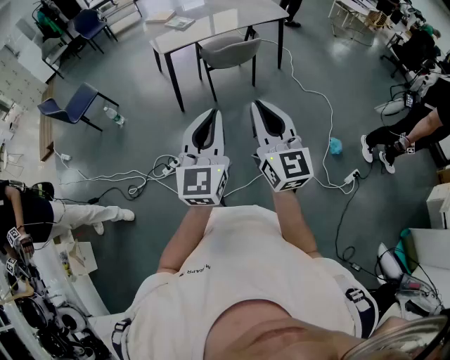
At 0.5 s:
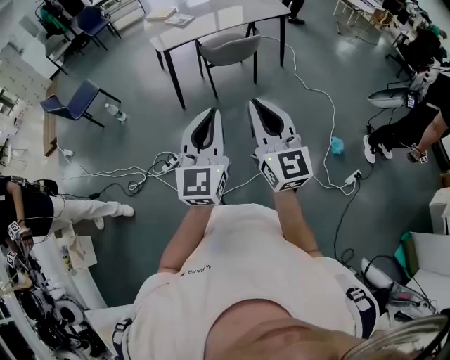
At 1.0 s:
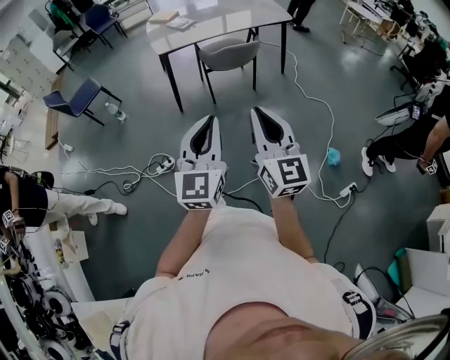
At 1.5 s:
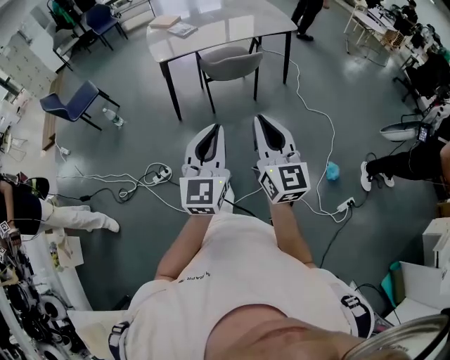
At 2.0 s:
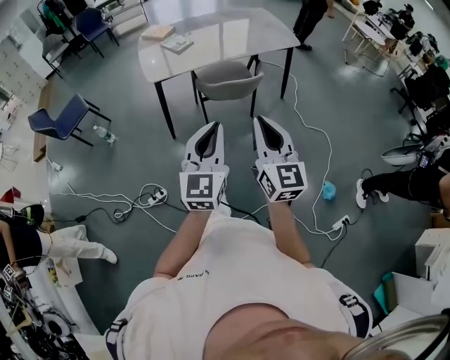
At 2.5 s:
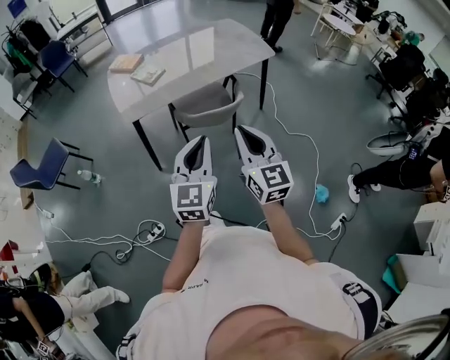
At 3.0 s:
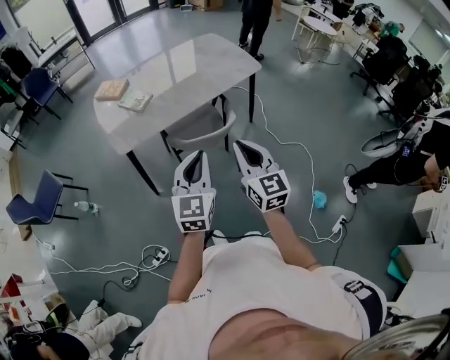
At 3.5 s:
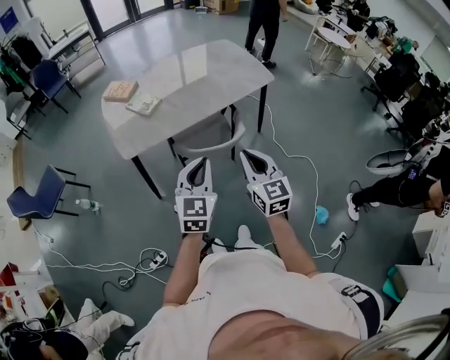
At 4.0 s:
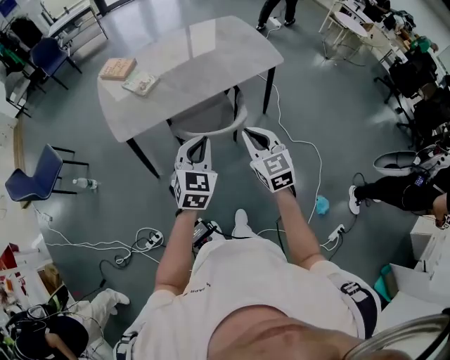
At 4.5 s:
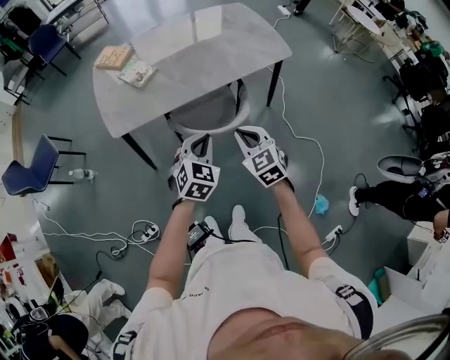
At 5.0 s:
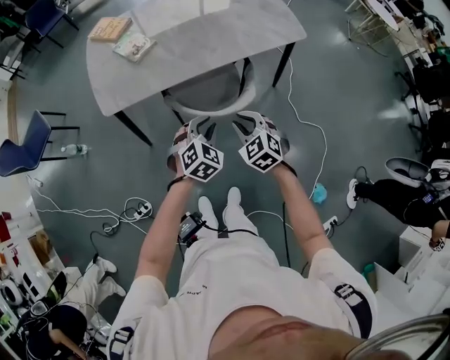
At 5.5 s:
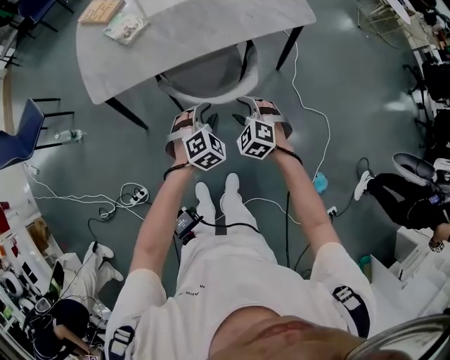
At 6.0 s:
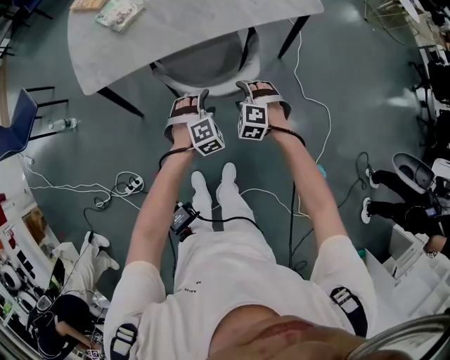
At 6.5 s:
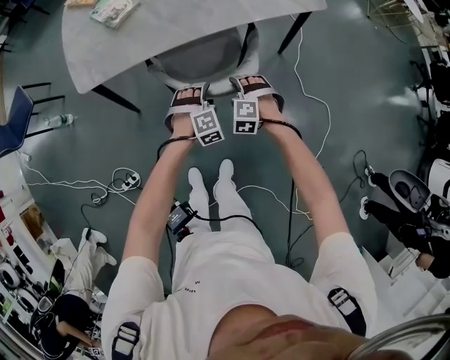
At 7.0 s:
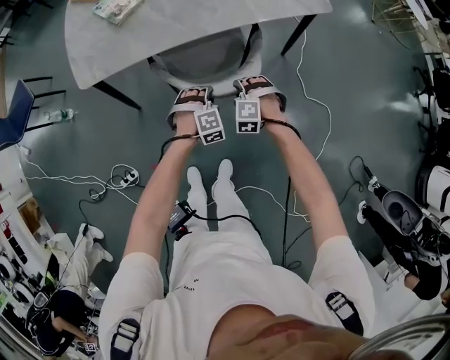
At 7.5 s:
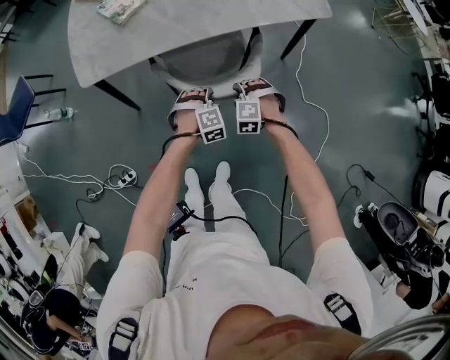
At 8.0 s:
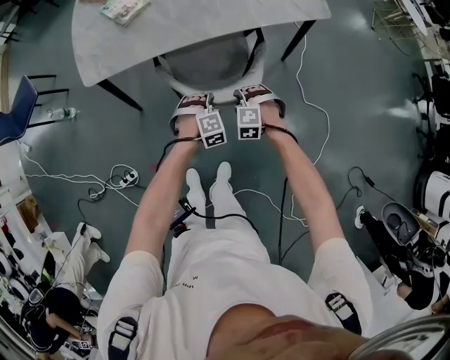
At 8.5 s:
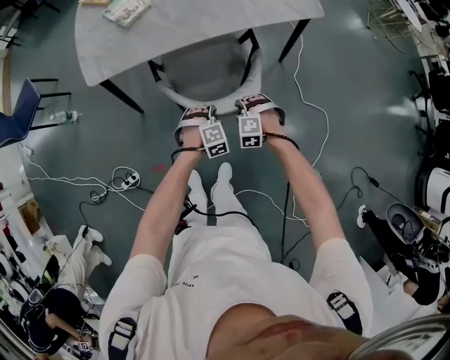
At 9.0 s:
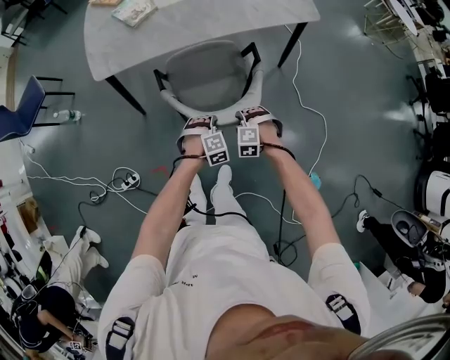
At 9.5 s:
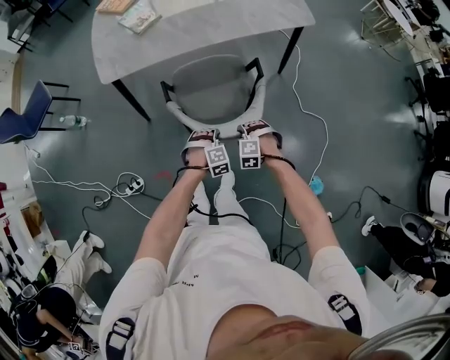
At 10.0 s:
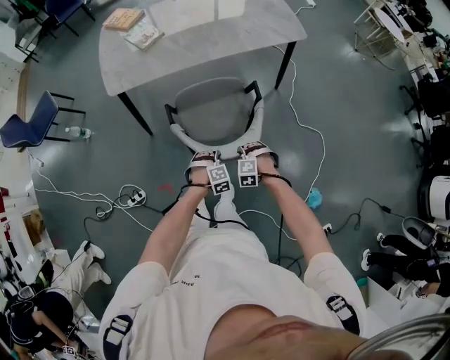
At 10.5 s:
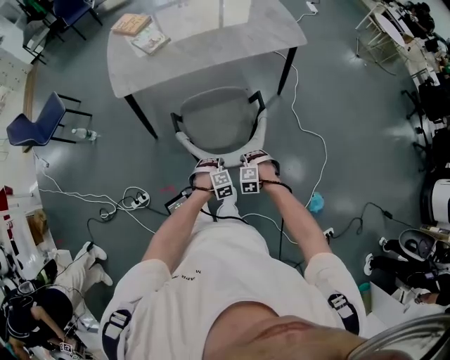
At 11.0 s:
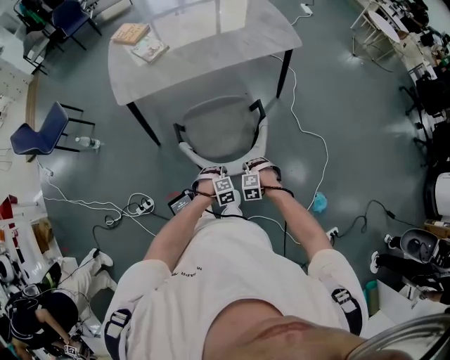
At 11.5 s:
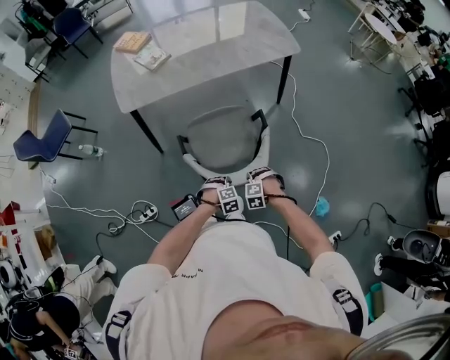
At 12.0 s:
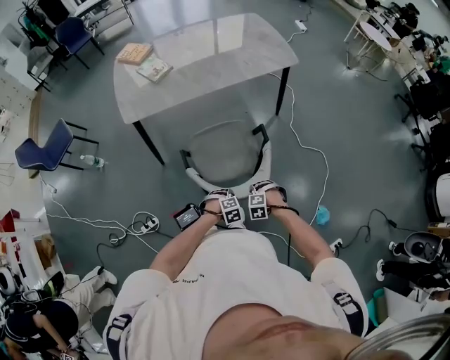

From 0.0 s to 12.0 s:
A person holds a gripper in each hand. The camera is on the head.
From 0.0 s to 2.0 s: Both grippers travel together forward, about 30 cm.
From 2.0 s to 4.0 s: The grippers both shift forward by about 35 cm. The left gripper rotates roughly 30 degrees. Meanwhile the right gripper swivels some 30 degrees.
From 4.0 s to 6.0 s: Both grippers travel together downward, about 35 cm. The left gripper angles its fingers downward, by roughly 30 degrees, and opens. The right gripper tilts its fingers about 40 degrees downward, and opens.
From 6.0 s to 8.0 s: The right gripper closes up, while the left gripper goes about 5 cm downward, and closes.
From 8.0 s to 10.0 s: Both grippers move backward, some 25 cm.
From 10.0 s to 12.0 s: The left gripper moves approximately 10 cm. Meanwhile the right gripper ends up approximately 10 cm from where it was.

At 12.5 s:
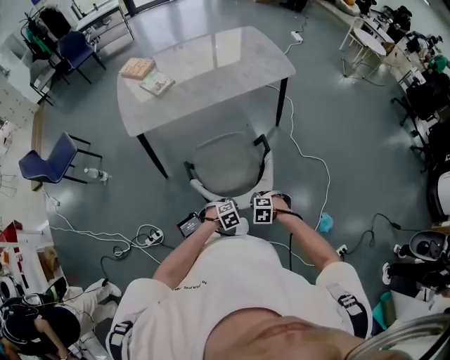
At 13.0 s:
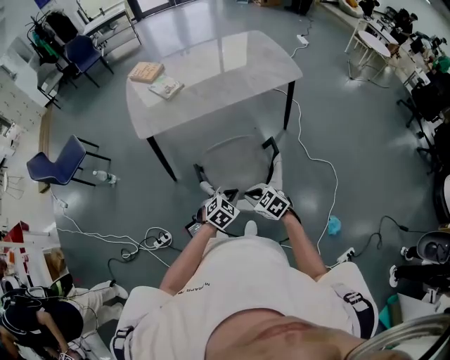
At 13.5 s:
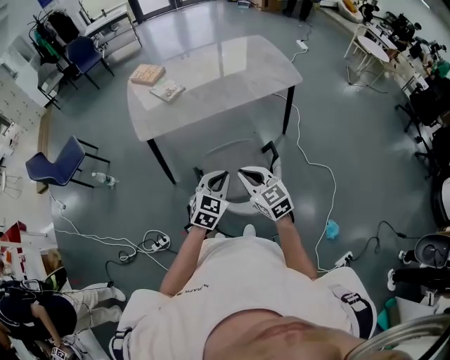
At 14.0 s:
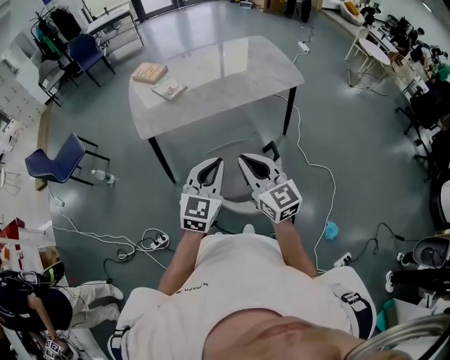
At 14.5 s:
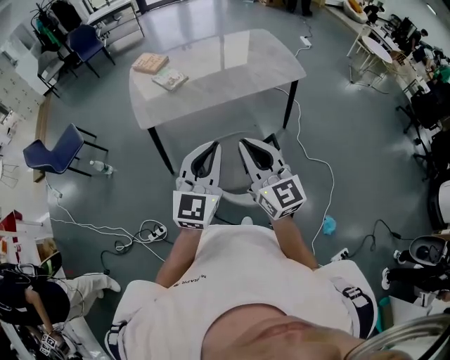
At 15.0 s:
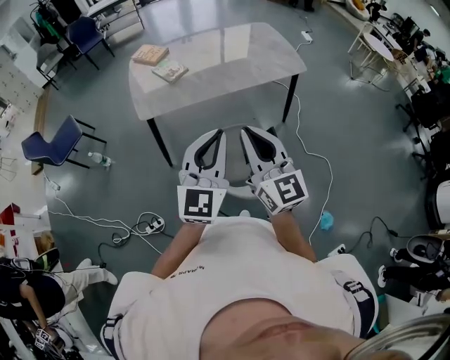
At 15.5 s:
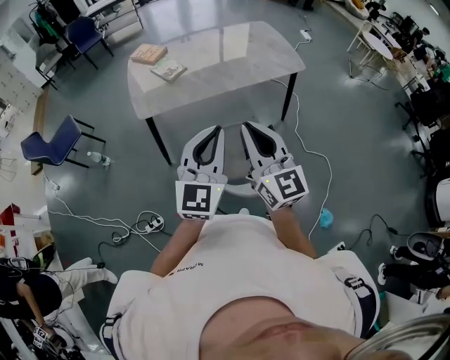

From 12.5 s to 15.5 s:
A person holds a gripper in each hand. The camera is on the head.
From 12.5 s to 14.0 s: Both grippers move upward, approximately 40 cm. The right gripper angles its fingers upward, by some 70 degrees. The left gripper tilts its fingers approximately 60 degrees upward.
From 14.0 s to 15.5 s: The grippers both shift upward by roughly 10 cm.

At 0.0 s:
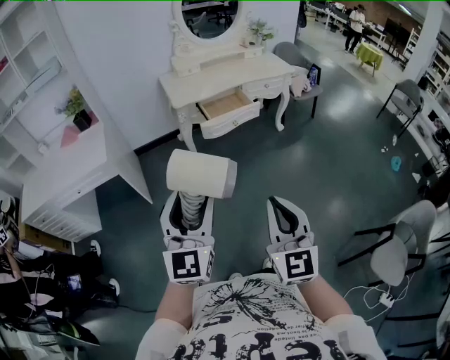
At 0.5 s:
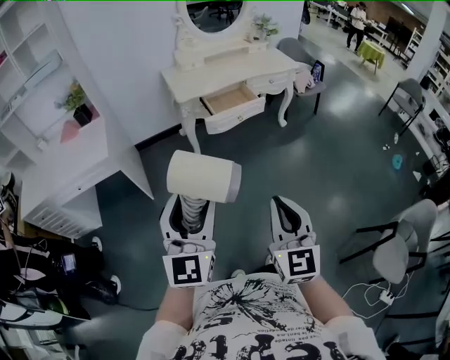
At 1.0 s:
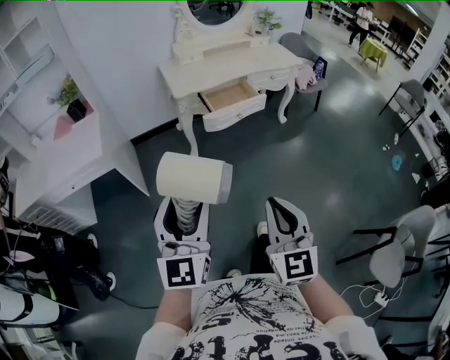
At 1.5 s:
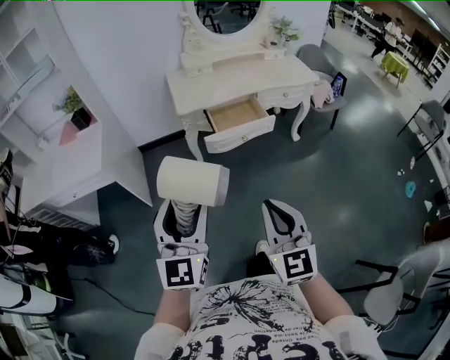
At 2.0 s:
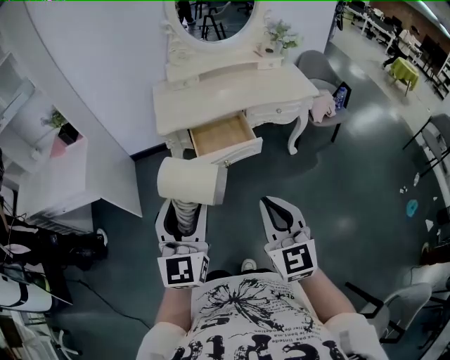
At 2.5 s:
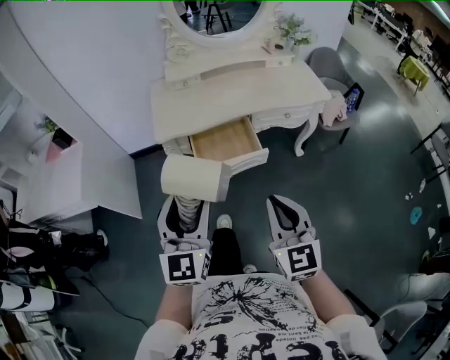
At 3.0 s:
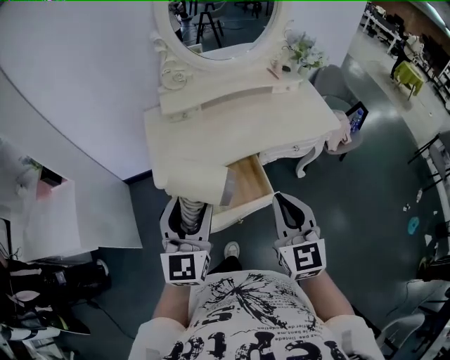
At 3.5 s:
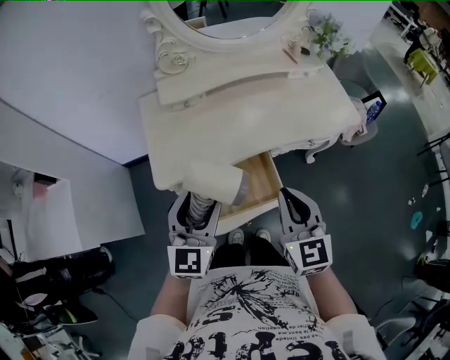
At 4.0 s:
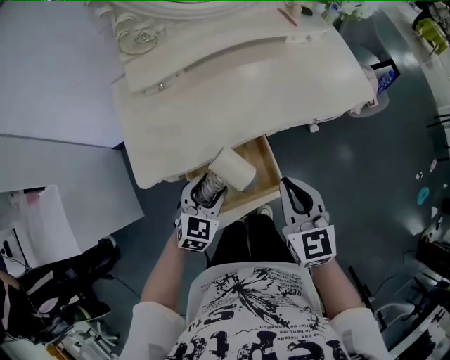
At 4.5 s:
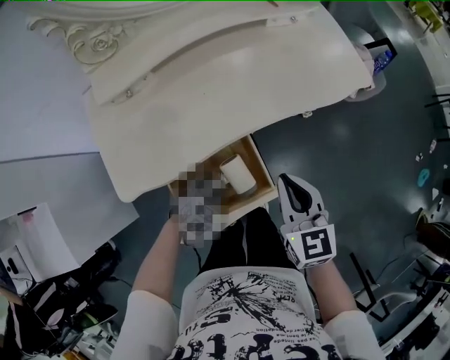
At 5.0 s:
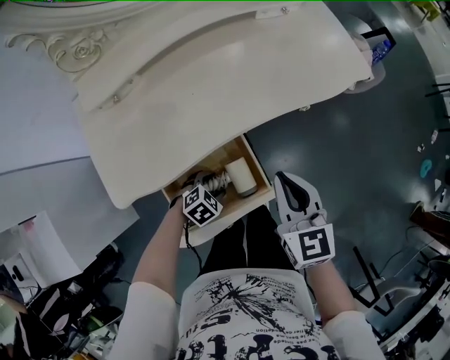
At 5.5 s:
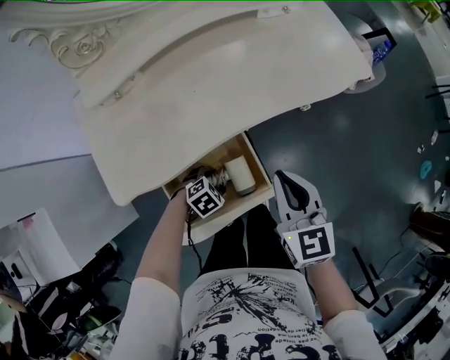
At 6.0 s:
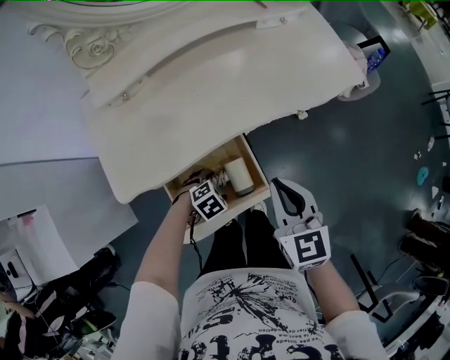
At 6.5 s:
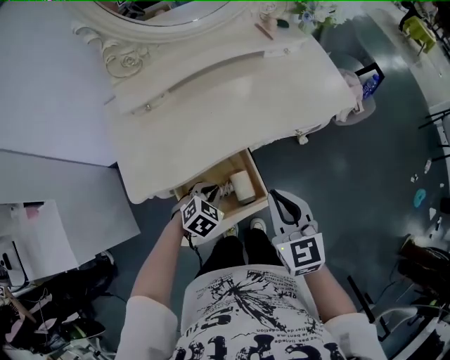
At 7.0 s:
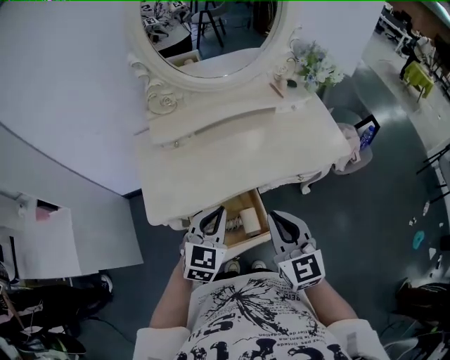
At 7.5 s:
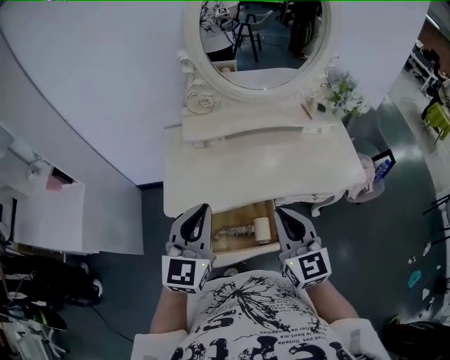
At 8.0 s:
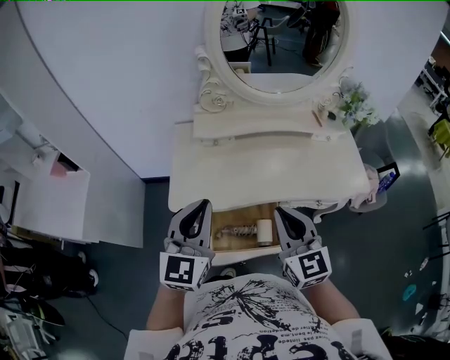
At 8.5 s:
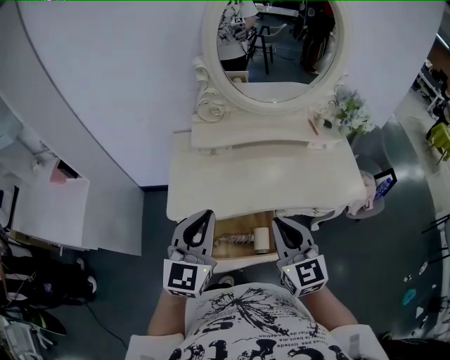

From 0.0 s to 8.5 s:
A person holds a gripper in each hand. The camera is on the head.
From 0.0 s to 2.0 s: Both grippers travel together forward and to the right, roughly 35 cm.
From 2.0 s to 4.0 s: The two grippers travel together, forward, about 50 cm. The left gripper travels downward by roughly 30 cm, and angles its fingers downward, by about 40 degrees, while the right gripper rotates roughly 20 degrees.
From 4.0 s to 6.5 s: The left gripper travels downward and back again, about 20 cm each way, swivels about 30 degrees, and closes its fingers.
From 6.5 s to 8.5 s: The left gripper travels upward by roughly 35 cm, and tips its fingers upward by about 60 degrees. Meanwhile the right gripper is displaced upward by approximately 15 cm, and changes its angle by about 20 degrees.

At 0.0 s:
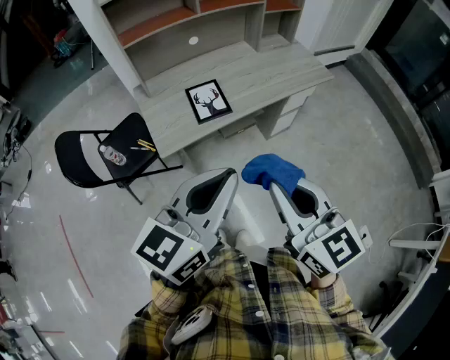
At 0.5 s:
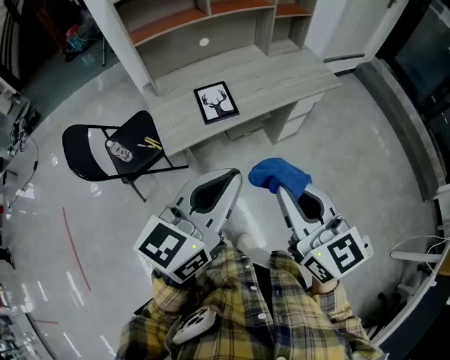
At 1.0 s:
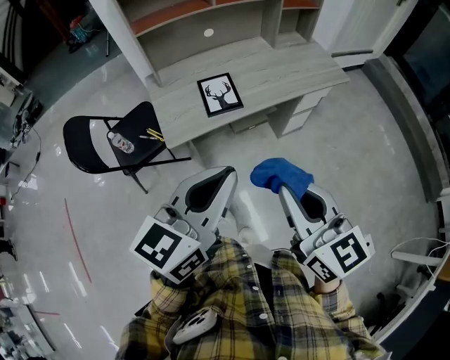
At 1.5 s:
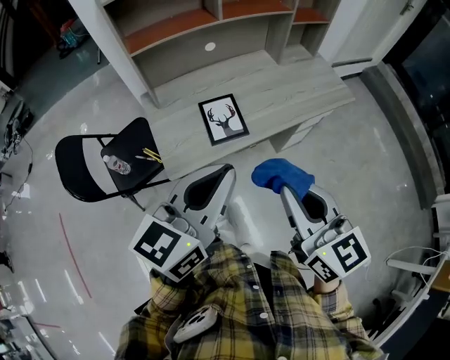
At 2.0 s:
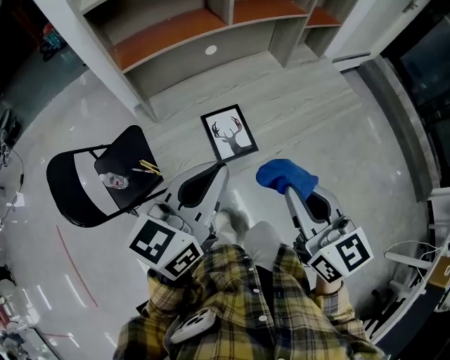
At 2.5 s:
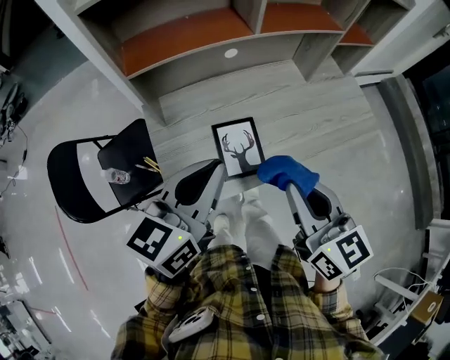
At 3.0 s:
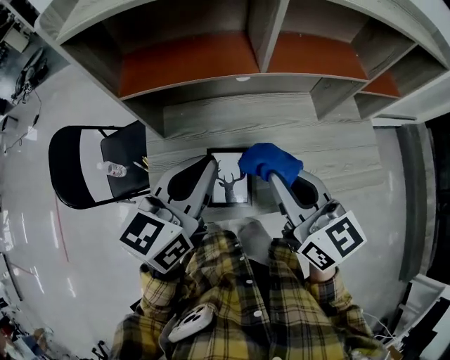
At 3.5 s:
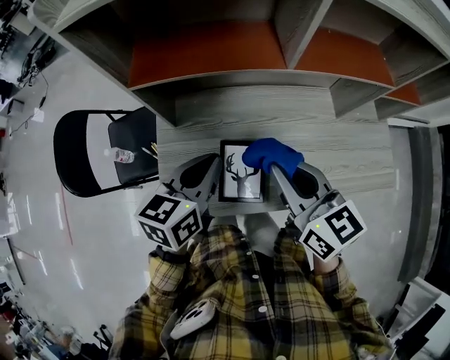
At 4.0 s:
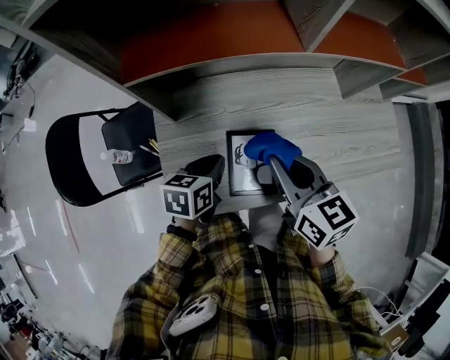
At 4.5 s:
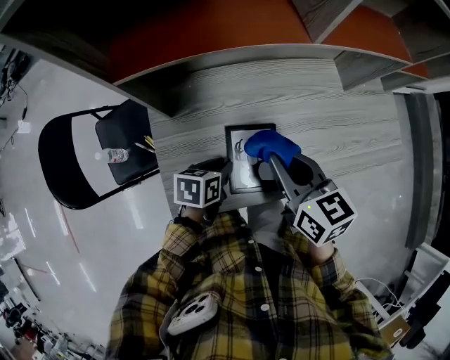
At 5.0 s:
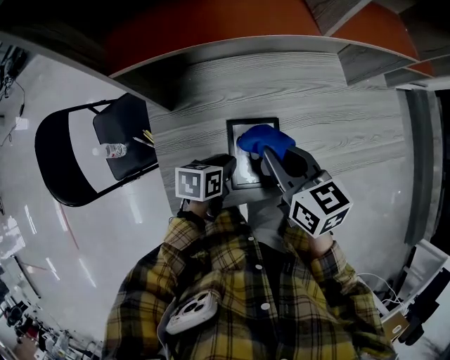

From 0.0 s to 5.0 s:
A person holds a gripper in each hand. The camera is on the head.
From 0.0 s to 2.5 s: The right gripper is displaced forward by some 30 cm. The left gripper is displaced forward and to the left by about 35 cm.
From 2.5 s to 5.0 s: The right gripper is displaced forward and downward by approximately 20 cm, and turns by some 20 degrees. The left gripper goes approximately 35 cm downward, and points its fingers some 40 degrees further downward.
